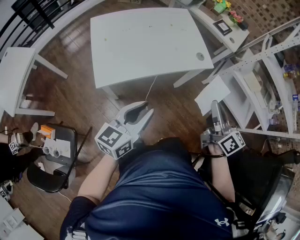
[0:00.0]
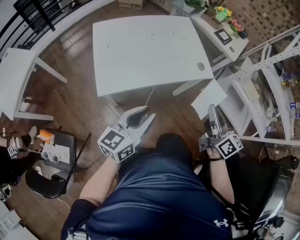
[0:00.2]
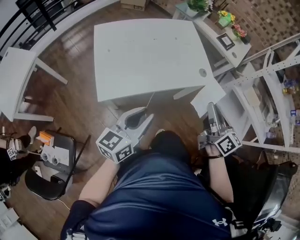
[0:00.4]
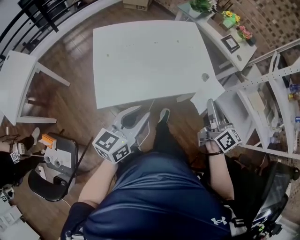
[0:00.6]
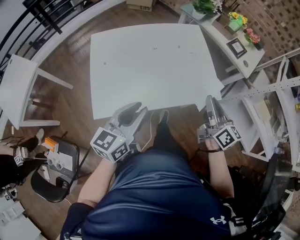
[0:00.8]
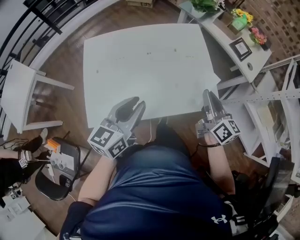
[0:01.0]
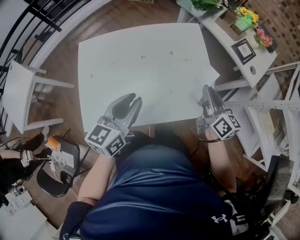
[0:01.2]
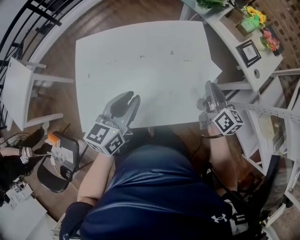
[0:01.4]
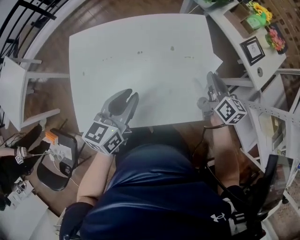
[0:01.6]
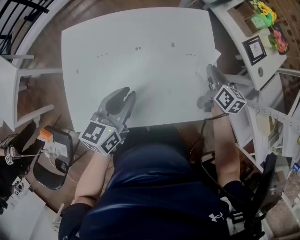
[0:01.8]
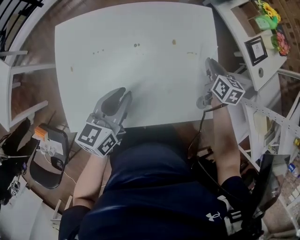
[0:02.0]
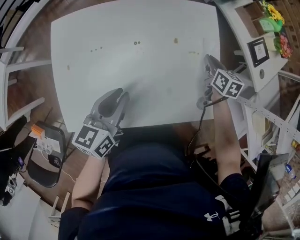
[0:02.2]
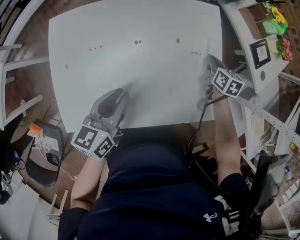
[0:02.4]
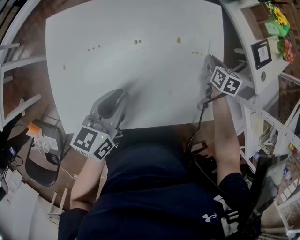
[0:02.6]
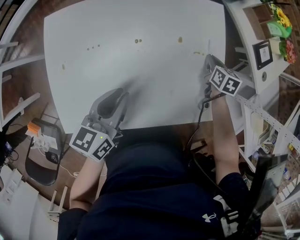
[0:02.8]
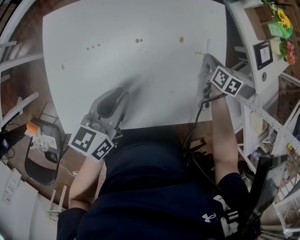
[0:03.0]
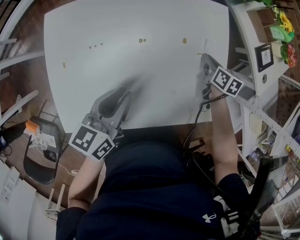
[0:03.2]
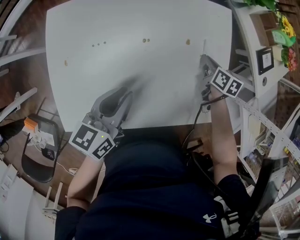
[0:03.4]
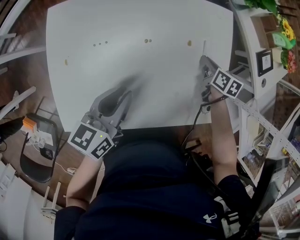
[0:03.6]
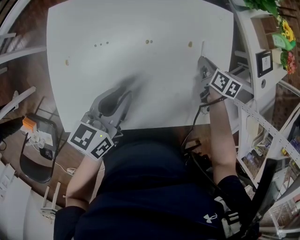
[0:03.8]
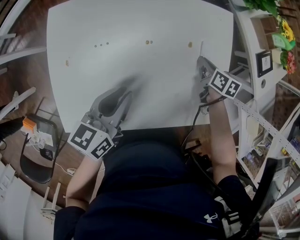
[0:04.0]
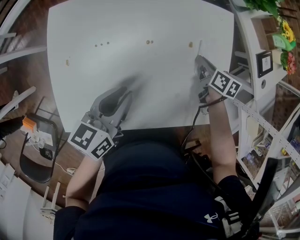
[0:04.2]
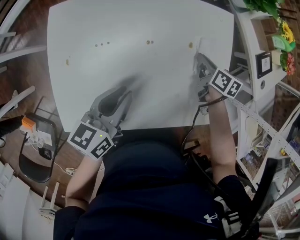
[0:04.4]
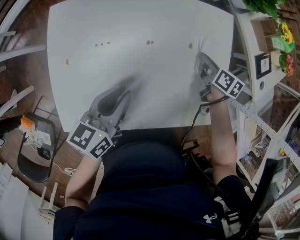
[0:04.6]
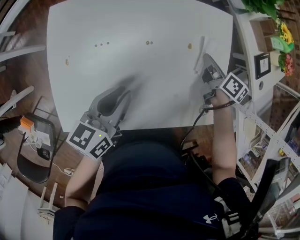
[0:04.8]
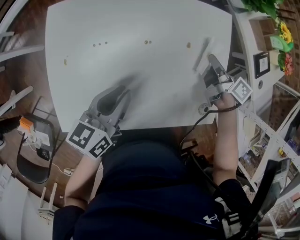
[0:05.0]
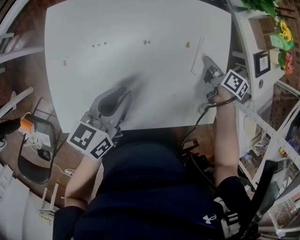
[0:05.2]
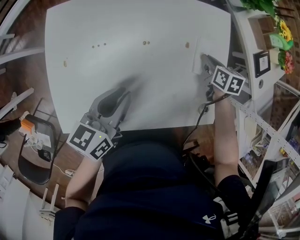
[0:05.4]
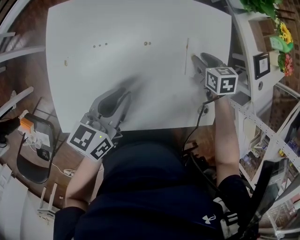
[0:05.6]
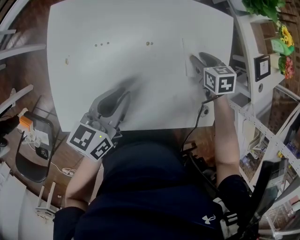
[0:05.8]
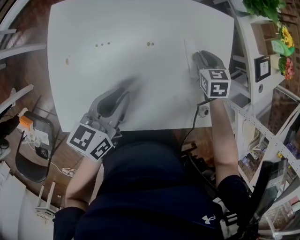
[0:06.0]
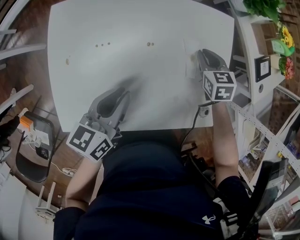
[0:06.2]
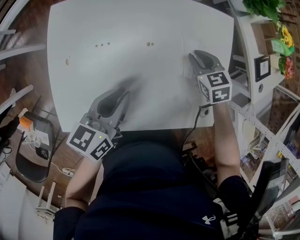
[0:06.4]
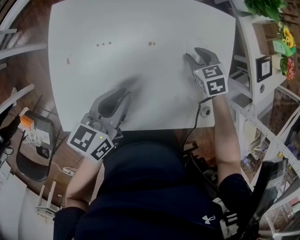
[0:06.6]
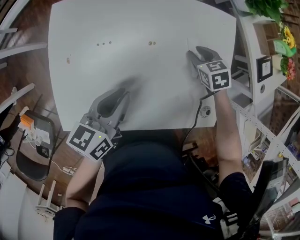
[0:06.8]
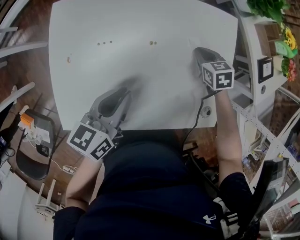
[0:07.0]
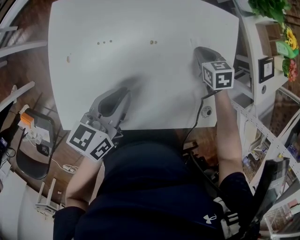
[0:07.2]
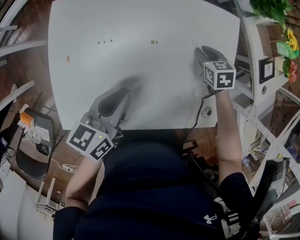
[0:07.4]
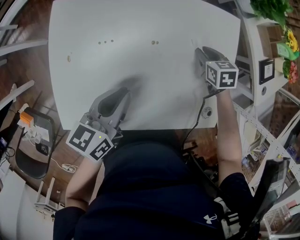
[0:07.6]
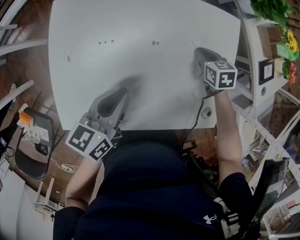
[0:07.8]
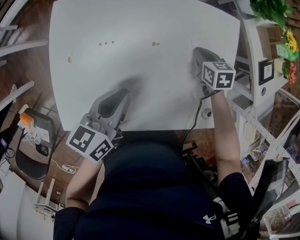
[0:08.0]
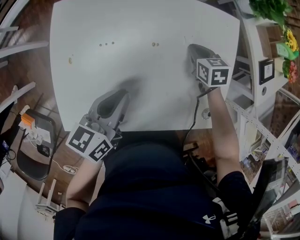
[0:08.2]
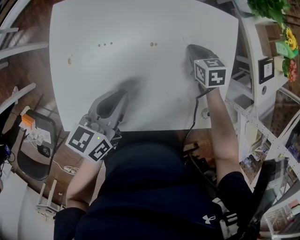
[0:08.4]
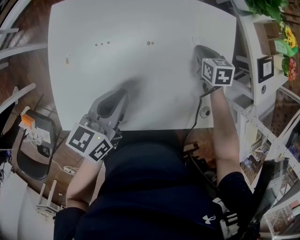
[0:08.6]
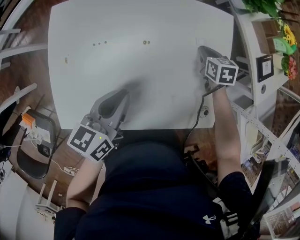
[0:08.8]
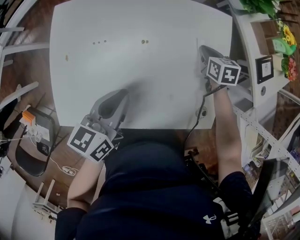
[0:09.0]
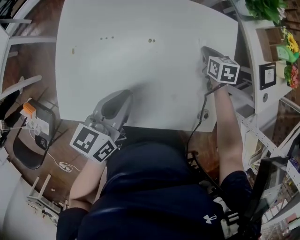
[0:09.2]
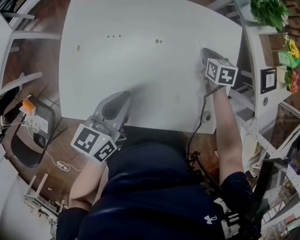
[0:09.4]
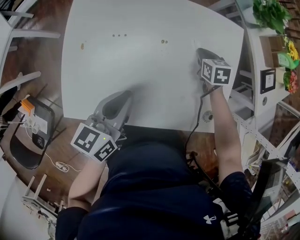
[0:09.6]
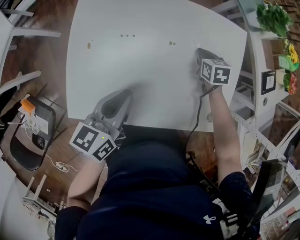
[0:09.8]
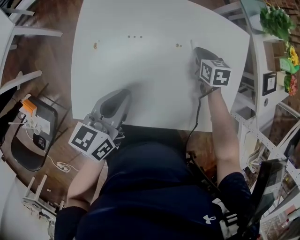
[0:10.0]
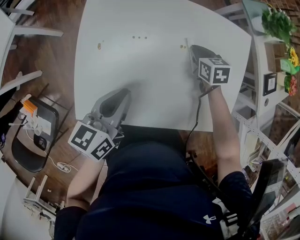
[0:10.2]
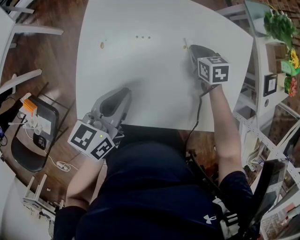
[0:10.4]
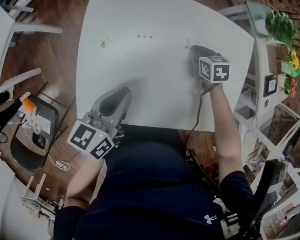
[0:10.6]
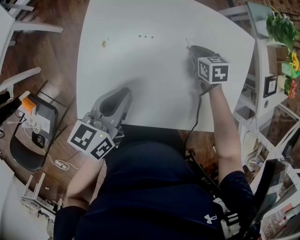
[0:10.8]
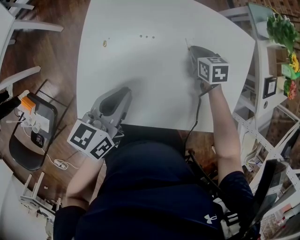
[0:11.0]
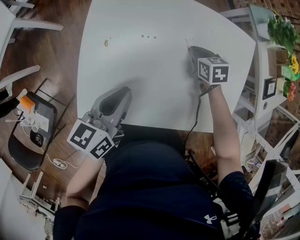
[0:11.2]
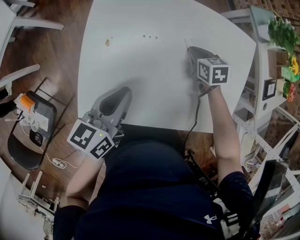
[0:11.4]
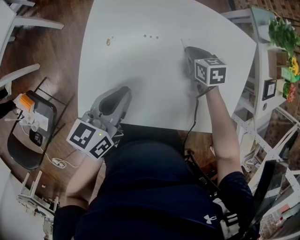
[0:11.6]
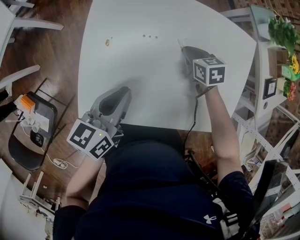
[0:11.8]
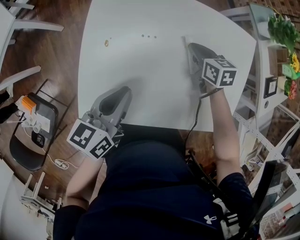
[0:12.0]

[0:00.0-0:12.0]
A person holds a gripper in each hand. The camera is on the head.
0:00.0 to 0:01.6: The grippers both shift forward by some 40 cm. The right gripper rotates some 20 degrees. The left gripper swivels roughly 20 degrees.
0:01.6 to 0:03.0: The right gripper goes roughly 20 cm downward and forward, and rotates some 30 degrees, while the left gripper moves downward, roughly 10 cm.
0:03.0 to 0:04.4: The right gripper moves to the left, some 10 cm.
0:04.4 to 0:06.0: The right gripper rolls counterclockwise, seen from behind, by approximately 40 degrees, and opens, then closes once more.
0:06.0 to 0:07.6: The grippers make only small movements.
0:07.6 to 0:09.0: The right gripper closes up.
0:09.0 to 0:10.4: The grippers both shift to the left by some 15 cm.
0:10.4 to 0:12.0: The grippers make only small movements.

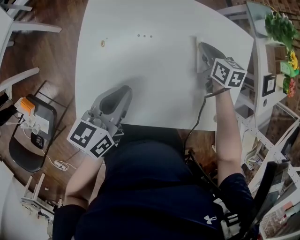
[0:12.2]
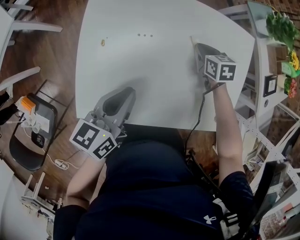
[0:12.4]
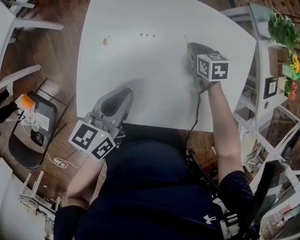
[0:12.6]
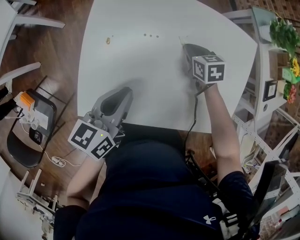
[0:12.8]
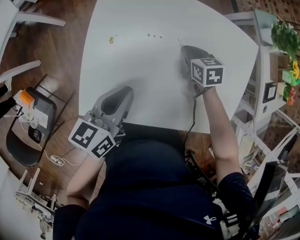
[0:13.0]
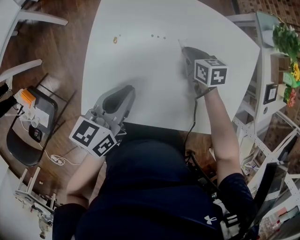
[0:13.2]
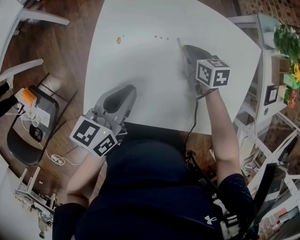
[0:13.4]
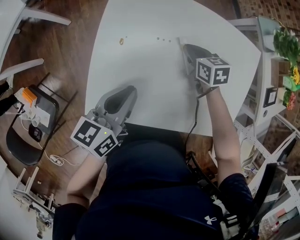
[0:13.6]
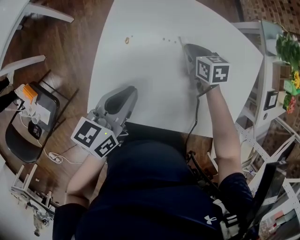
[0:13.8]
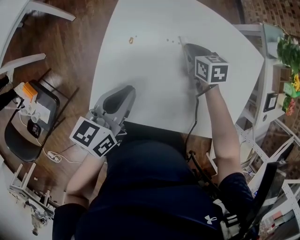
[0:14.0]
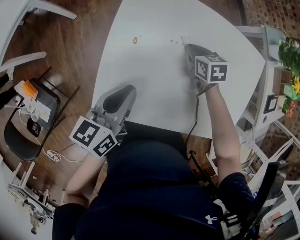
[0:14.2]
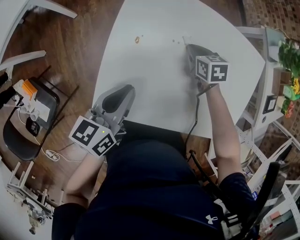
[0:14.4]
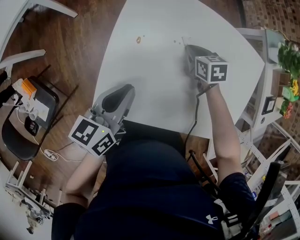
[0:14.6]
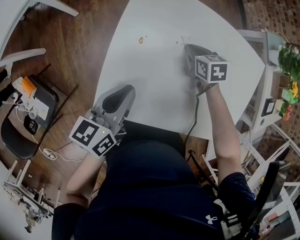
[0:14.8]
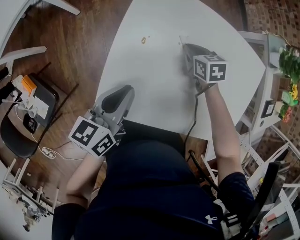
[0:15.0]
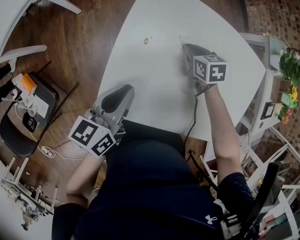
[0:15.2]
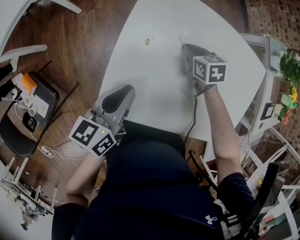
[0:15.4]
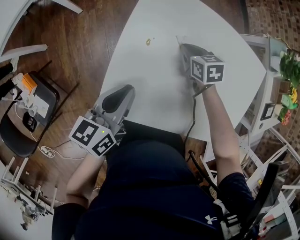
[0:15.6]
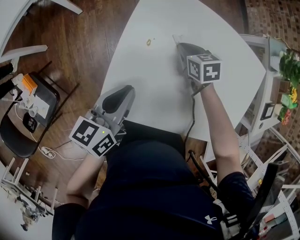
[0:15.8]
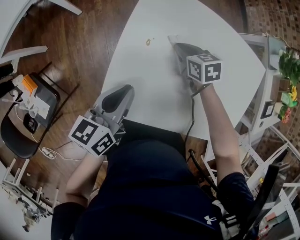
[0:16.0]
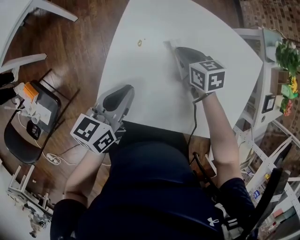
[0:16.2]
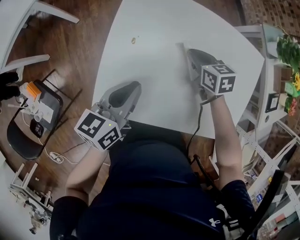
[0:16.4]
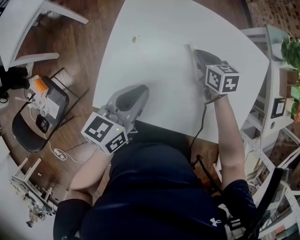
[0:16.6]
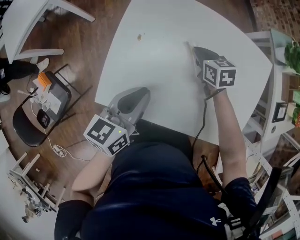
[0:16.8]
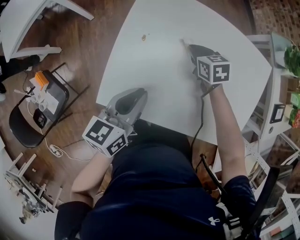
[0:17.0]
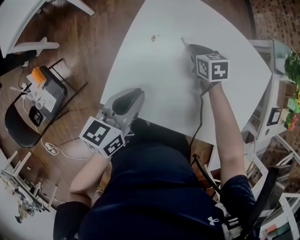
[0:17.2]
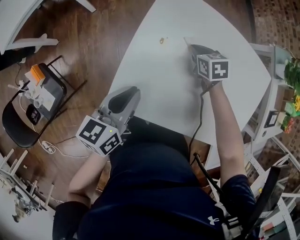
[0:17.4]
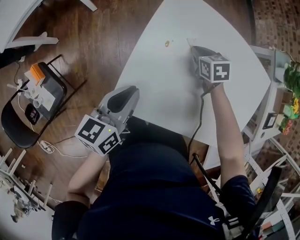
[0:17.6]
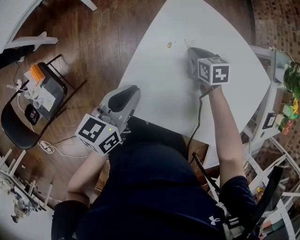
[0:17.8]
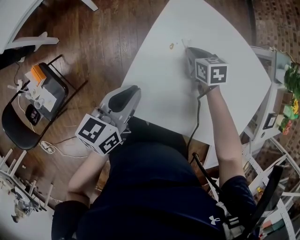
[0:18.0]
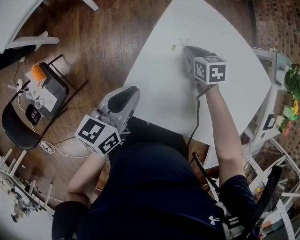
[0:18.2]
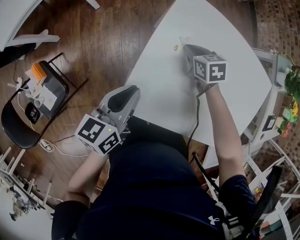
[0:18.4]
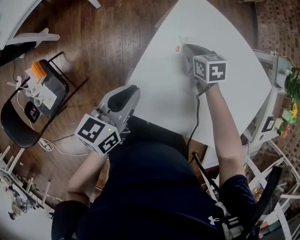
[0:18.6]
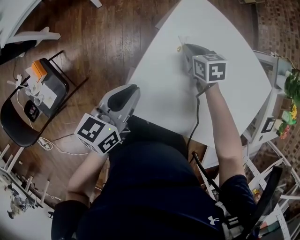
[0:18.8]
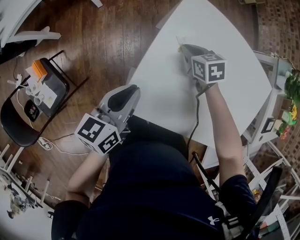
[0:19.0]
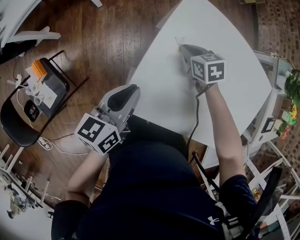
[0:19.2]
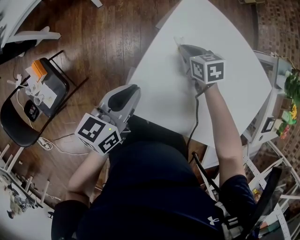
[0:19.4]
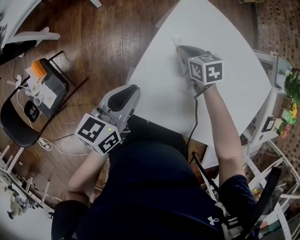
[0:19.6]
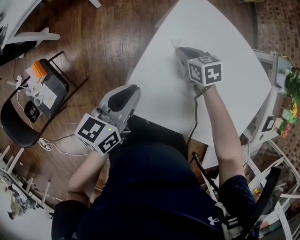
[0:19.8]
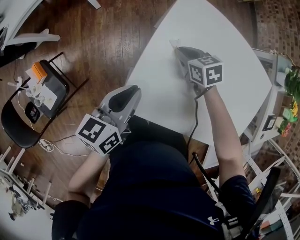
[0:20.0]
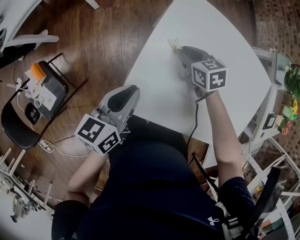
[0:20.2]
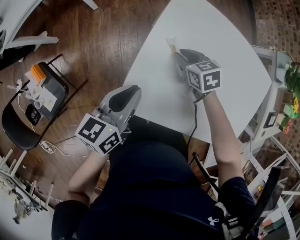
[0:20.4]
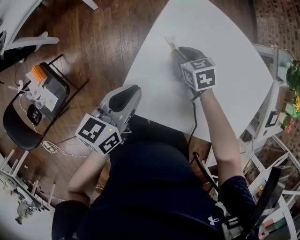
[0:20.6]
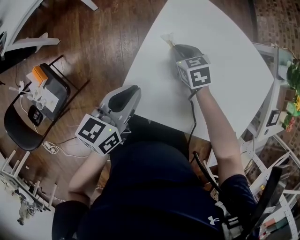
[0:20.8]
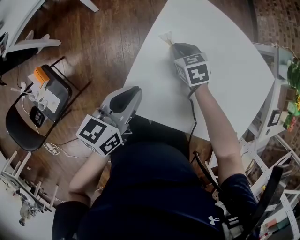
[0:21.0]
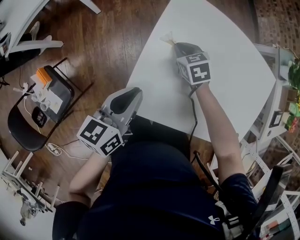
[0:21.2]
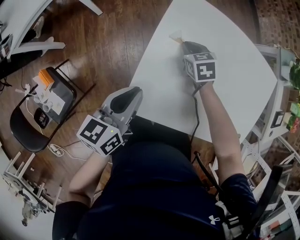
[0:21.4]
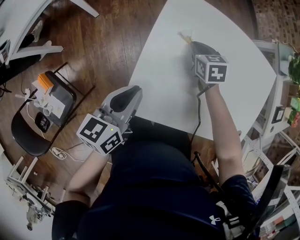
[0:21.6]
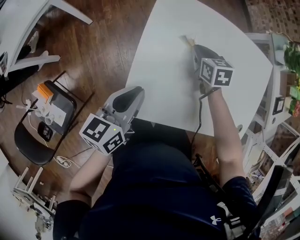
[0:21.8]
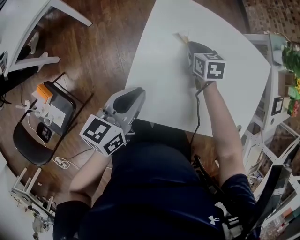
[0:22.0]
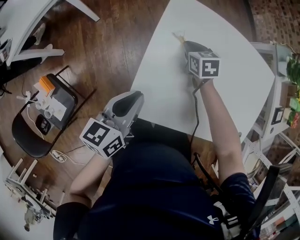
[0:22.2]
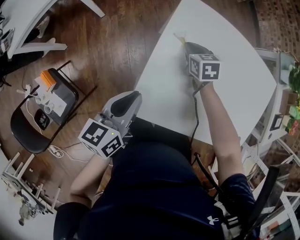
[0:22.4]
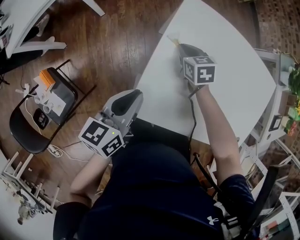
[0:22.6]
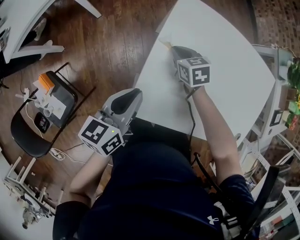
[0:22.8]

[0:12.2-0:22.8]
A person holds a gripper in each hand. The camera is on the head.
0:12.2 to 0:13.8: The left gripper moves to the left, roughly 5 cm. The right gripper moves to the left, some 15 cm.
0:13.8 to 0:15.2: Both grippers travel together to the left, roughly 5 cm.
0:15.2 to 0:16.8: The left gripper goes some 10 cm to the right, while the right gripper heads to the right, covering some 5 cm.
0:16.8 to 0:18.2: Both grippers move to the left, some 15 cm.
0:18.2 to 0:19.8: The right gripper is displaced to the left by approximately 5 cm.
0:19.8 to 0:21.2: The grippers make only small movements.
0:21.2 to 0:22.8: The right gripper goes to the right and returns, approximately 10 cm each way.

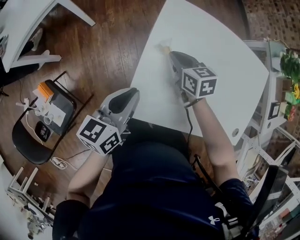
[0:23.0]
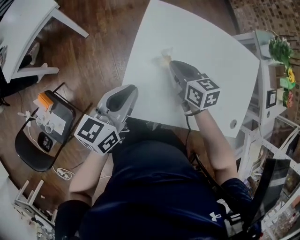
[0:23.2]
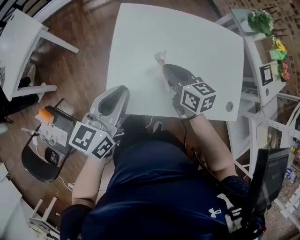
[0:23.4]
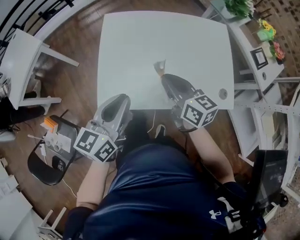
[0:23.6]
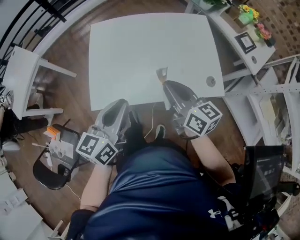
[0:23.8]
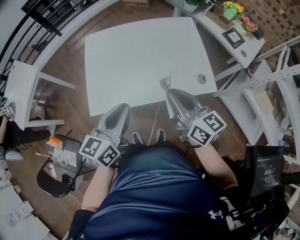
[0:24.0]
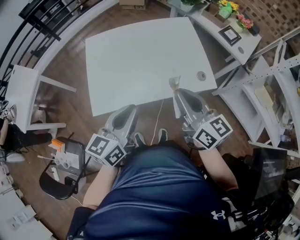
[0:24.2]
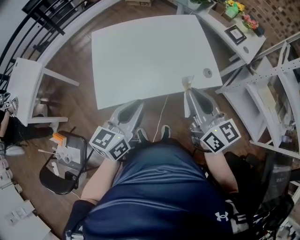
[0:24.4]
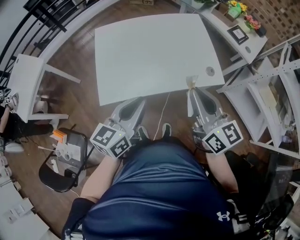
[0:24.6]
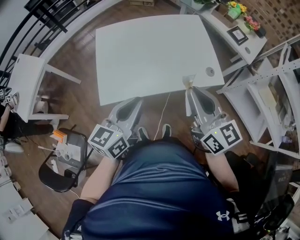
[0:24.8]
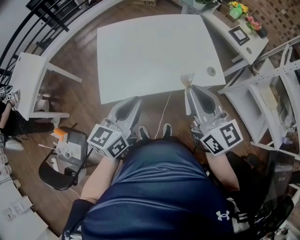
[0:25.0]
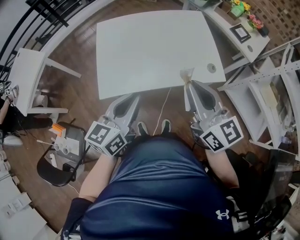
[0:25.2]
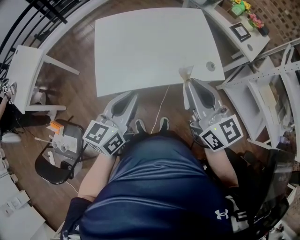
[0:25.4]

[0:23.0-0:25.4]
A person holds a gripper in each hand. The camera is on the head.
0:23.0 to 0:24.2: The right gripper changes place by some 50 cm, and tips its fingers upward by about 40 degrees, while the left gripper shifts by some 35 cm, and turns by approximately 30 degrees.
0:24.2 to 0:25.4: The right gripper moves roughly 5 cm; the left gripper shifts by about 5 cm.
